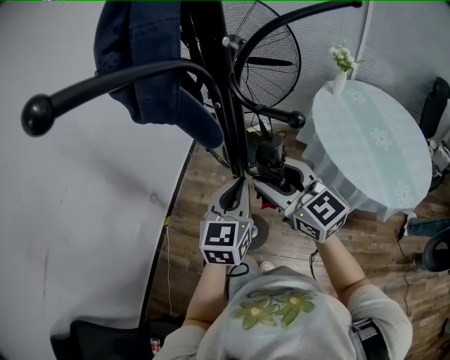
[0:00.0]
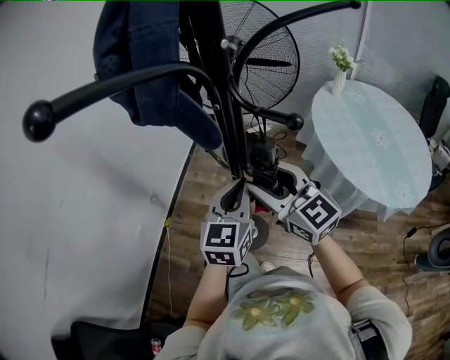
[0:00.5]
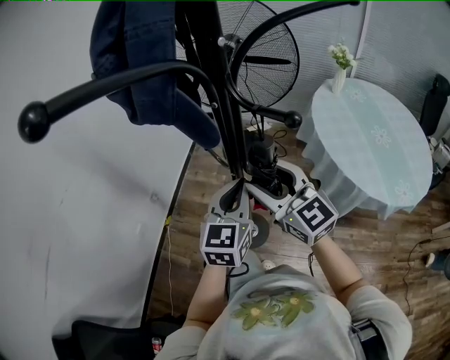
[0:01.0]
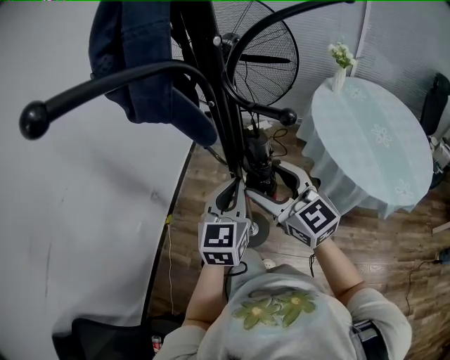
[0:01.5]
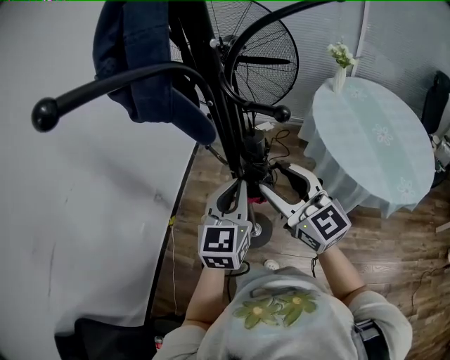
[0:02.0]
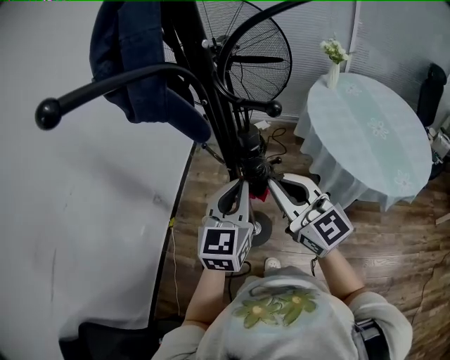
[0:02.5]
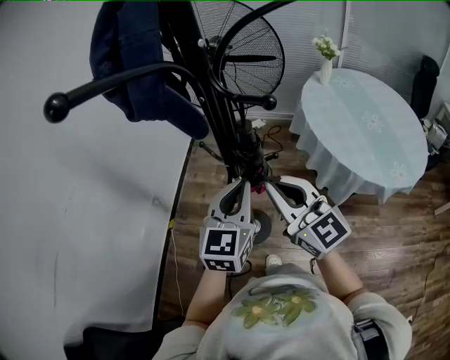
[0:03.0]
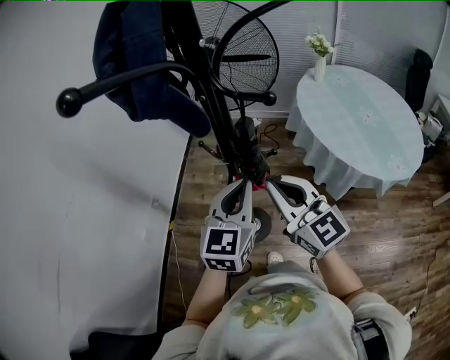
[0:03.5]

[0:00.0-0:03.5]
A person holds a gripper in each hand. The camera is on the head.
0:00.0 to 0:02.0: The grippers stay close to where they were, moving slightly.
0:02.0 to 0:03.5: The right gripper goes about 5 cm backward, and closes.

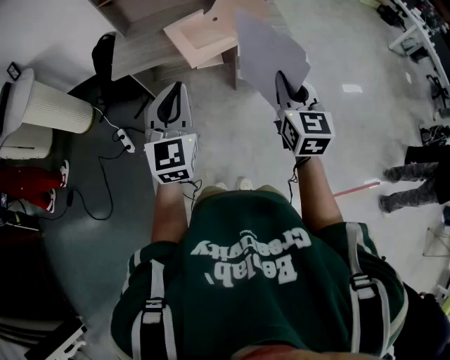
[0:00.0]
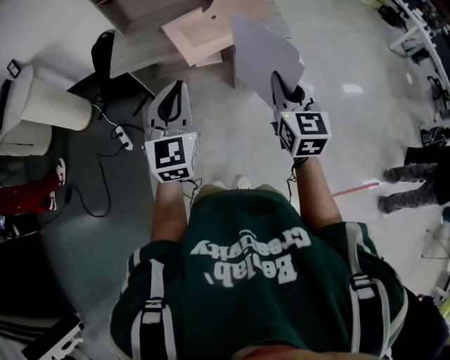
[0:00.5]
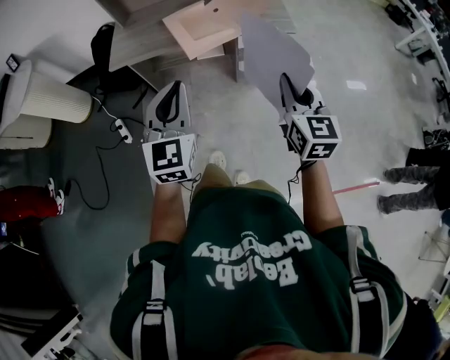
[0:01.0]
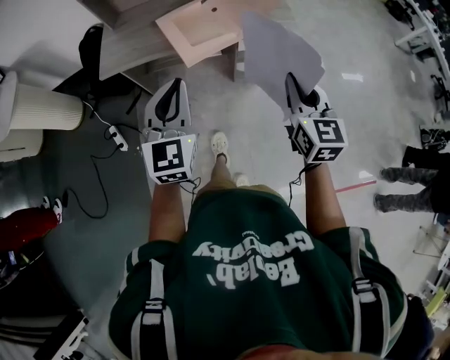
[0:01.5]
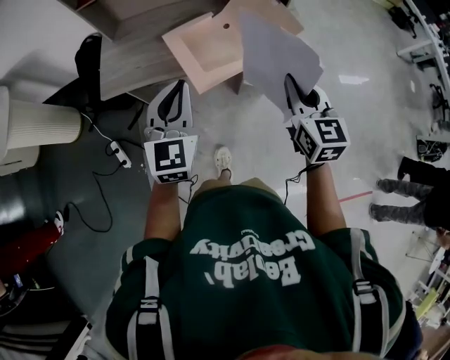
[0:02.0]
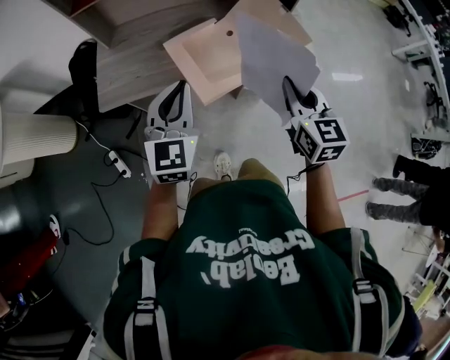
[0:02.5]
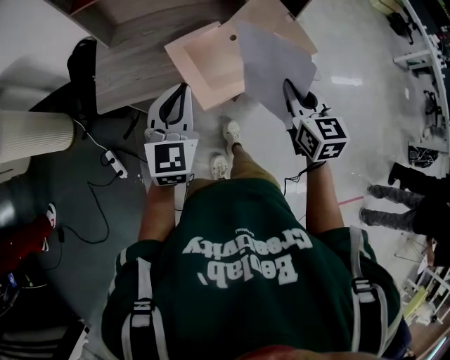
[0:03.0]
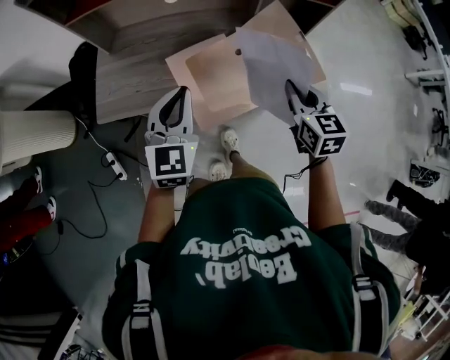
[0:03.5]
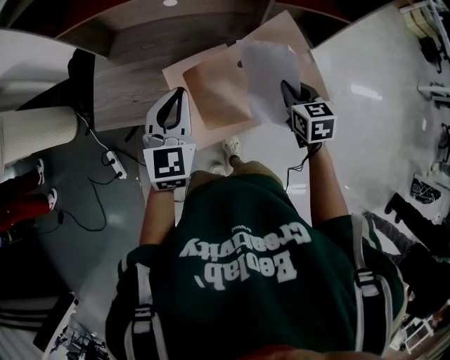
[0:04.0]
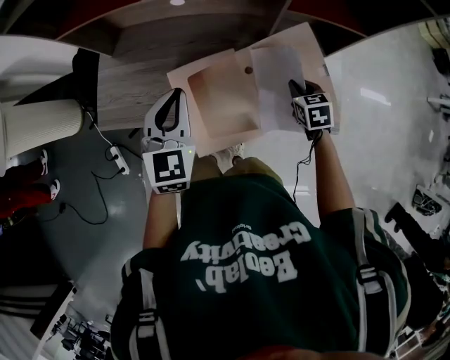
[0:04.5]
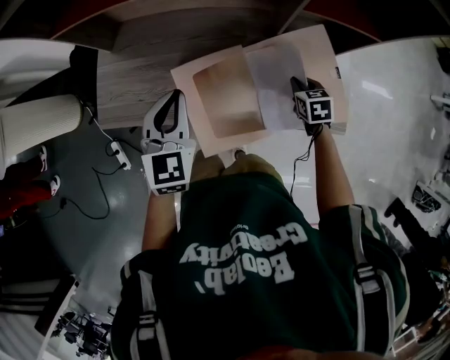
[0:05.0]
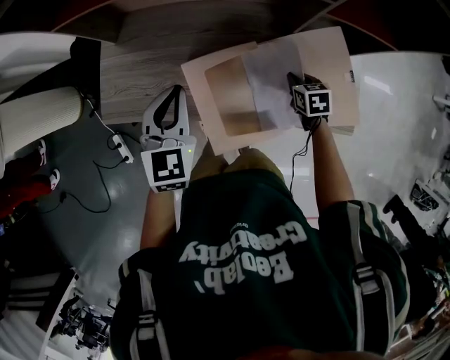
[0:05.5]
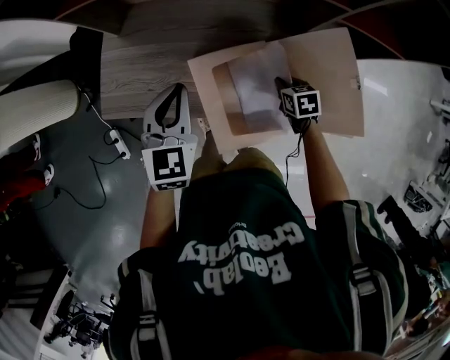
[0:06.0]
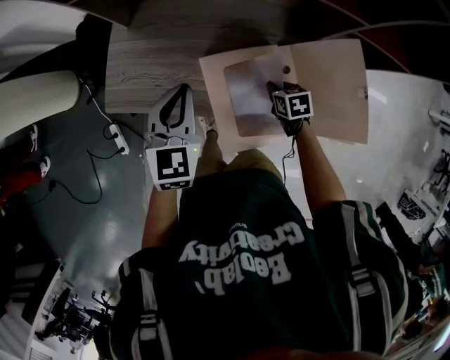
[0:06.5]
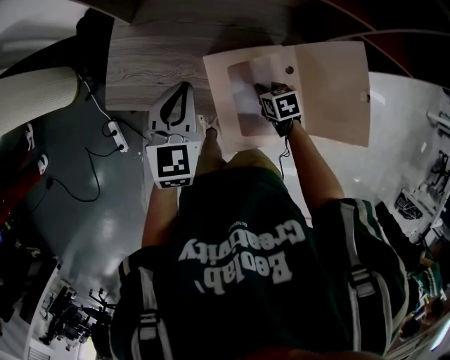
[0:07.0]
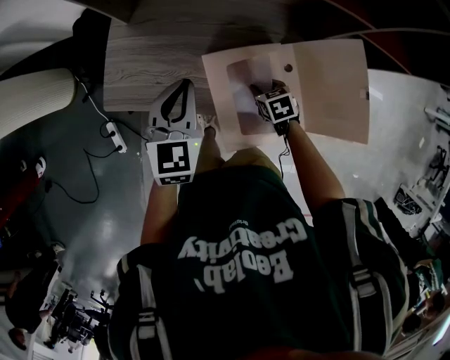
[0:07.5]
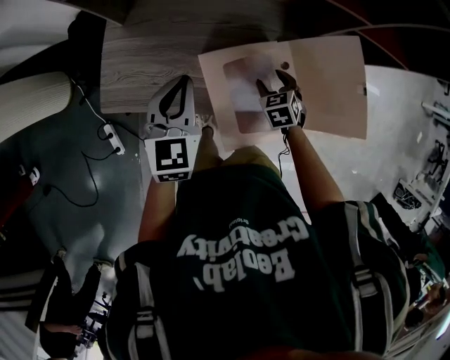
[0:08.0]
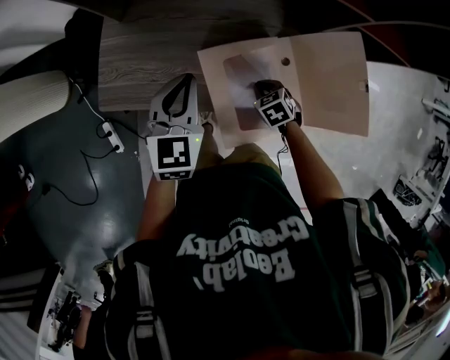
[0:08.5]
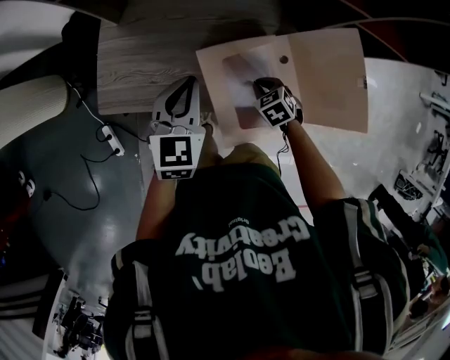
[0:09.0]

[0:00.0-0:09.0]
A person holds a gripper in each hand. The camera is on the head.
0:00.0 to 0:02.0: The two grippers go roughly 30 cm forward.
0:02.0 to 0:04.5: The right gripper moves forward and downward, approximately 50 cm, and points its fingers approximately 30 degrees further downward. The left gripper moves forward, roughly 35 cm.
0:04.5 to 0:07.0: The left gripper goes approximately 15 cm to the left, forward and downward. The right gripper travels to the left and downward by approximately 25 cm, and changes its angle by some 20 degrees.
0:07.0 to 0:09.0: The right gripper turns by approximately 20 degrees, and opens and closes again.

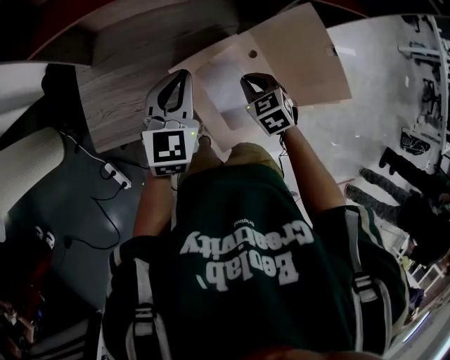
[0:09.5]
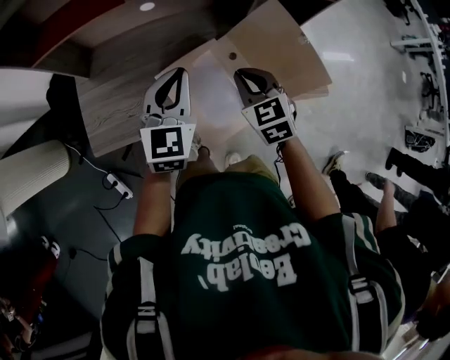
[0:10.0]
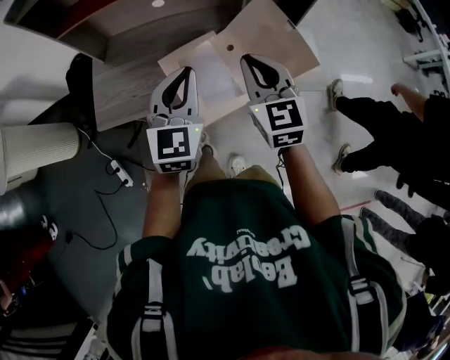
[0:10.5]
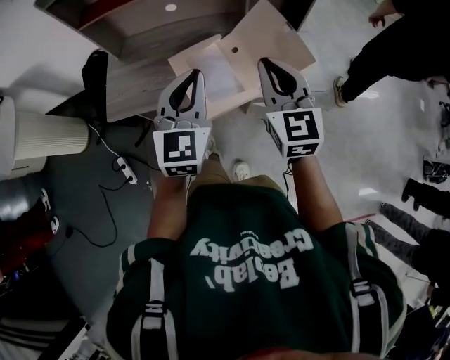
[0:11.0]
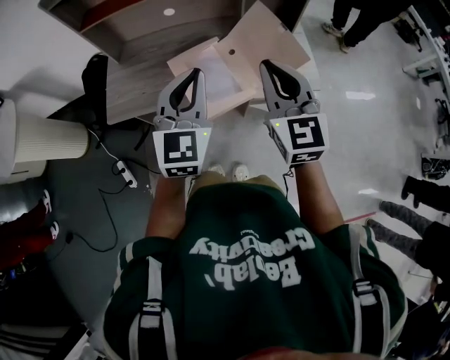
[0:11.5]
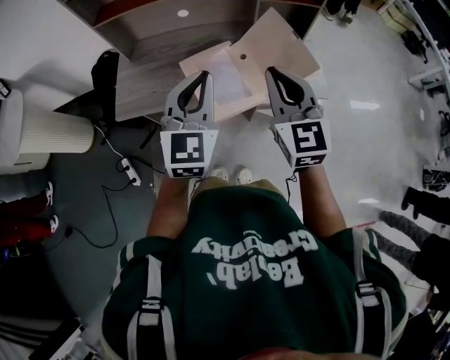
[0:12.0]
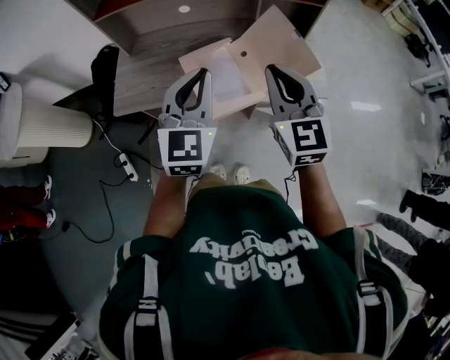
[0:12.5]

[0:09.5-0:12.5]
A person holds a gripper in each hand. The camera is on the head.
0:09.5 to 0:11.0: The right gripper travels upward, backward and to the right by about 40 cm, and points its fingers roughly 50 degrees further upward; the left gripper heads backward, upward and to the right, covering approximately 35 cm.
0:11.0 to 0:12.5: The grippers make only small movements.

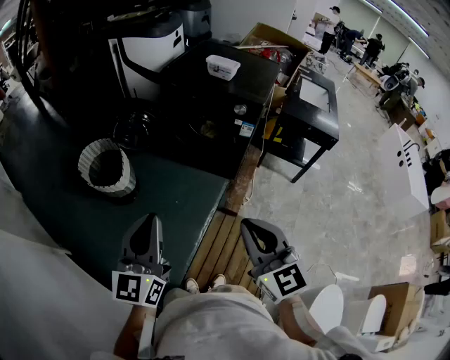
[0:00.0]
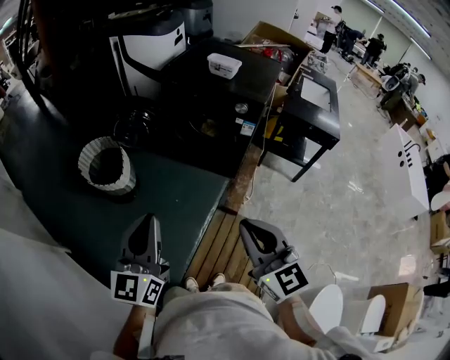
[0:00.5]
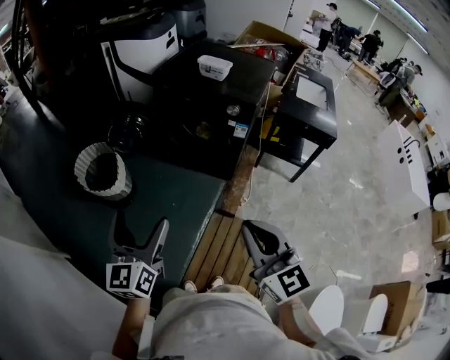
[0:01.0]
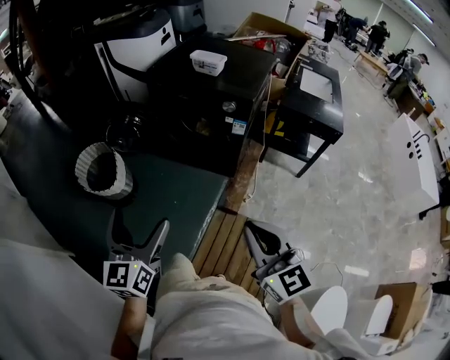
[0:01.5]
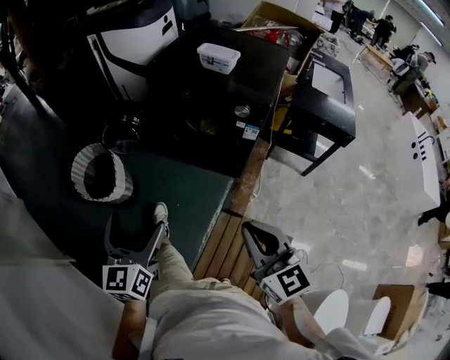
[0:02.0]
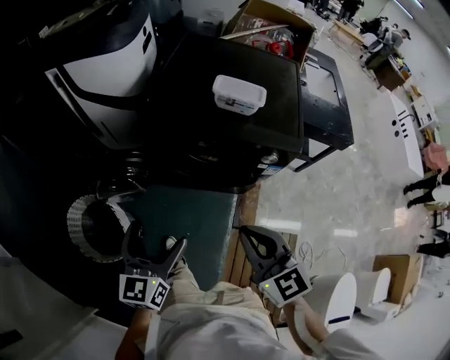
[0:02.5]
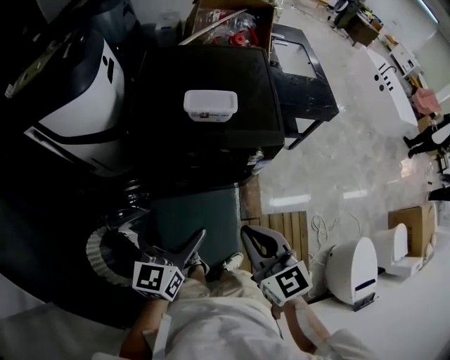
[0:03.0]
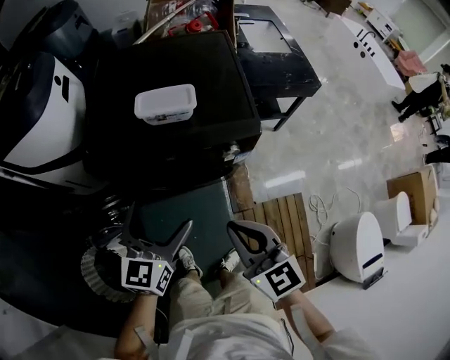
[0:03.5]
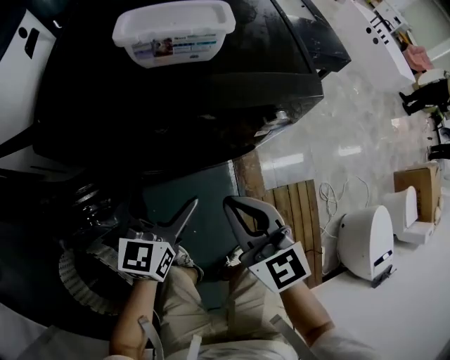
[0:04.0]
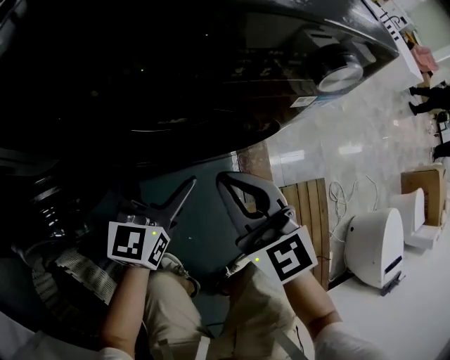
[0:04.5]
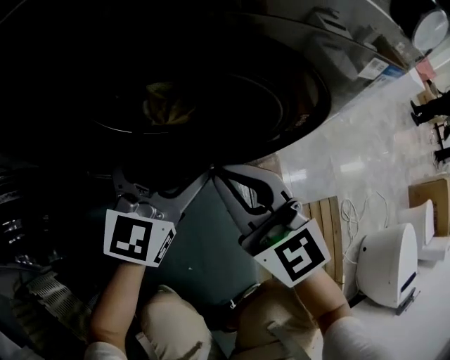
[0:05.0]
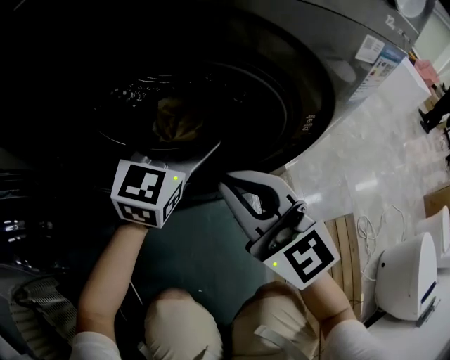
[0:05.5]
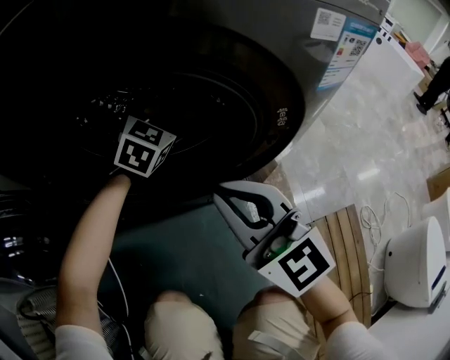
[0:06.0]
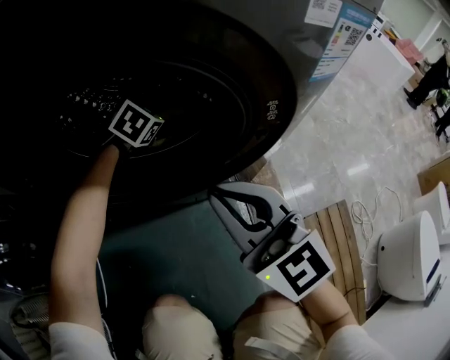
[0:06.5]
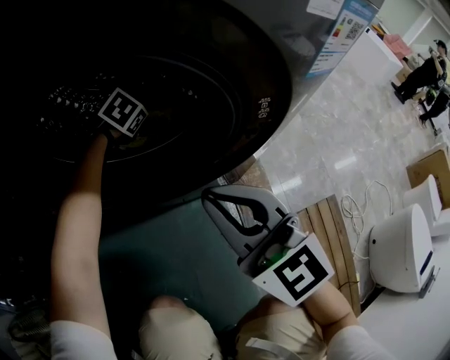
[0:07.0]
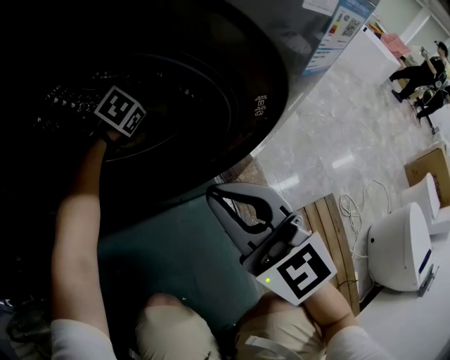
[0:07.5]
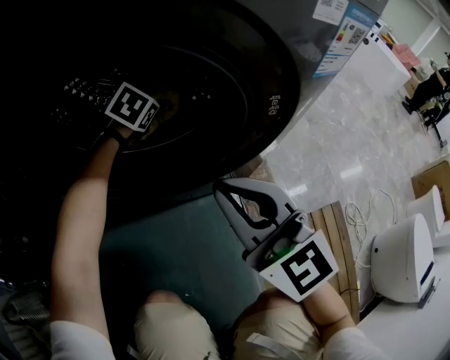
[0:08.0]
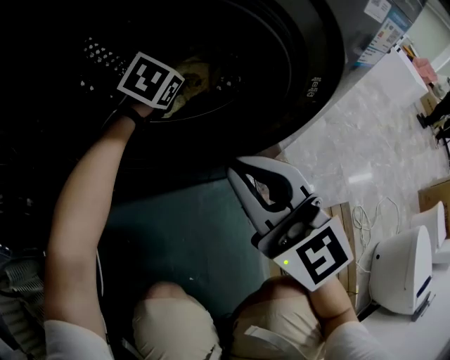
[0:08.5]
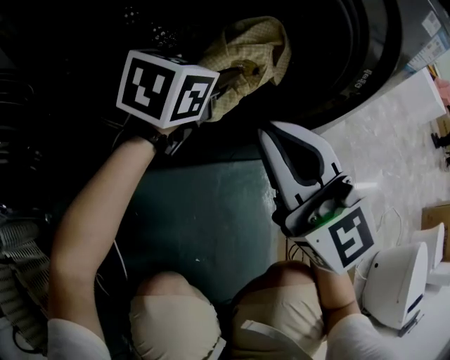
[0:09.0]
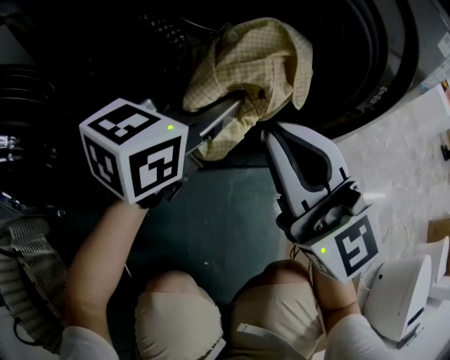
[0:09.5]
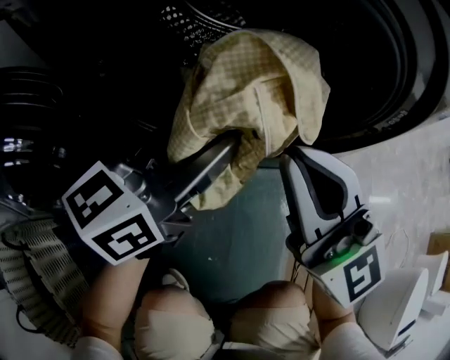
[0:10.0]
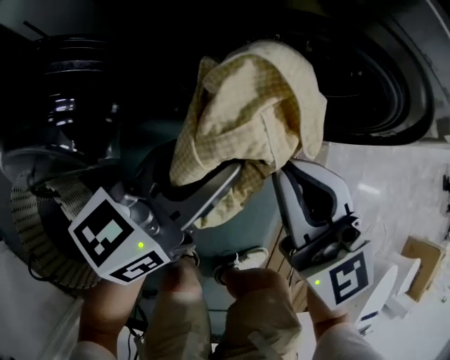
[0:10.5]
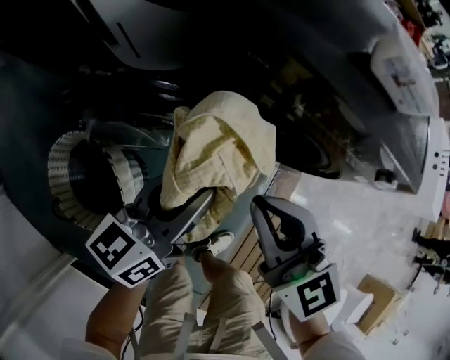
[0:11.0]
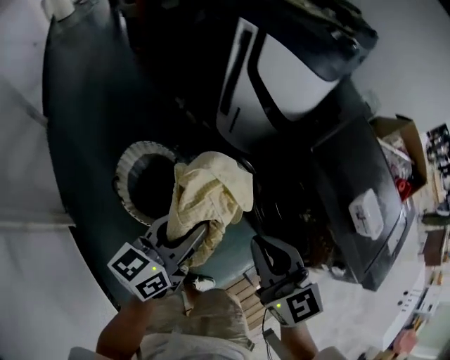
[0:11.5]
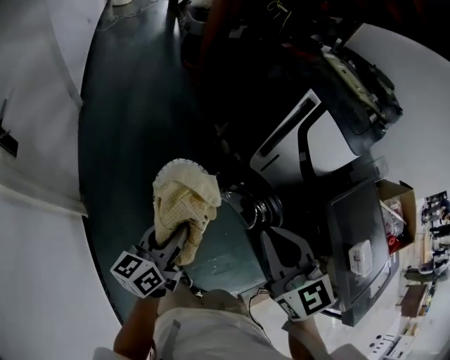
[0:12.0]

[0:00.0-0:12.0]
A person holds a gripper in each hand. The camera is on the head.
0:00.0 to 0:02.0: The right gripper shifts some 15 cm forward, downward and to the right; the left gripper moves forward and downward, approximately 20 cm, and opens up.
0:02.0 to 0:04.0: The two grippers travel together, some 40 cm. The right gripper changes its angle by roughly 30 degrees, while the left gripper swivels roughly 50 degrees.
0:04.0 to 0:06.0: The right gripper is displaced downward by approximately 30 cm, and turns by some 20 degrees, while the left gripper moves downward and forward, approximately 40 cm, and turns by about 40 degrees.
0:06.0 to 0:08.0: The left gripper shifts about 10 cm downward and forward, swivels about 20 degrees, and closes its fingers.
0:08.0 to 0:10.0: The left gripper travels backward and upward by about 30 cm, and tips its fingers upward by approximately 50 degrees. The right gripper is displaced to the left by approximately 10 cm.
0:10.0 to 0:12.0: The right gripper is displaced to the left and upward by some 25 cm, and turns by some 20 degrees; the left gripper is displaced to the left by roughly 30 cm, and changes its angle by approximately 30 degrees.
